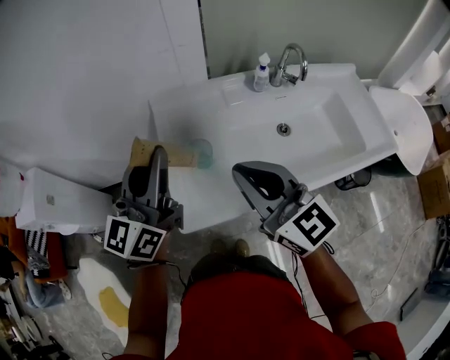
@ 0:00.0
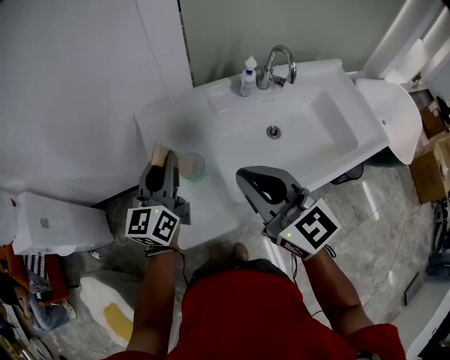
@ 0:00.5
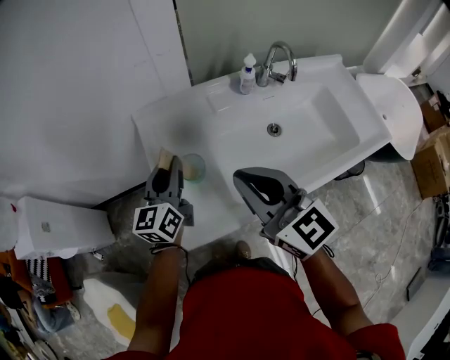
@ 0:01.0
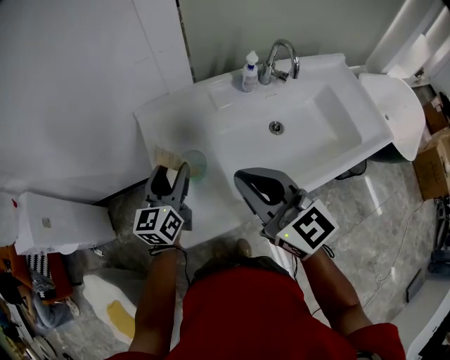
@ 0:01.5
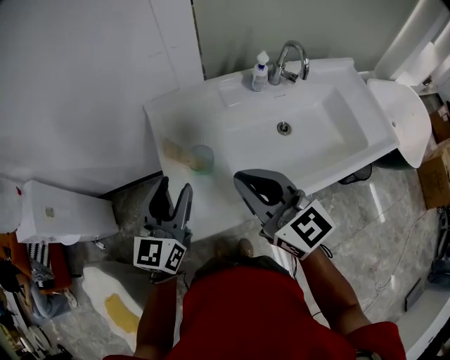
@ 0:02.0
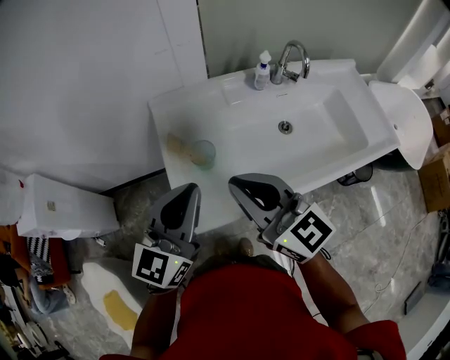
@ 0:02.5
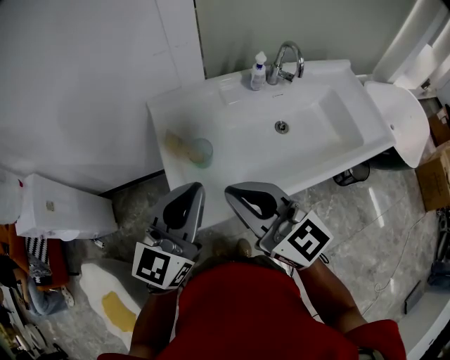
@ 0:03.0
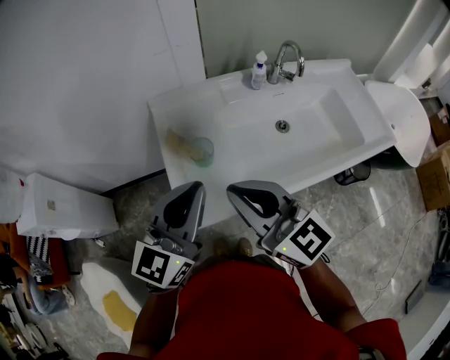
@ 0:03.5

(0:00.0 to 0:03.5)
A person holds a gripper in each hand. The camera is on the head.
0:00.0 - 0:02.0: The left gripper goes some 10 cm downward, and opens its fingers.
0:02.0 - 0:03.5: The right gripper is displaced backward by some 5 cm, while the left gripper goes some 10 cm upward, backward and to the right, and closes up.

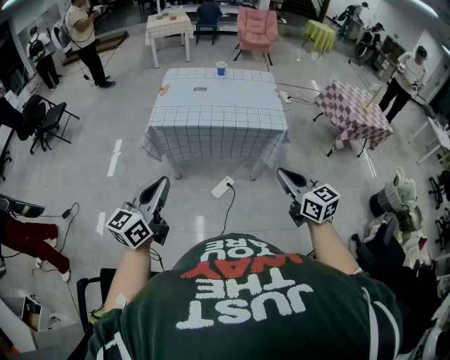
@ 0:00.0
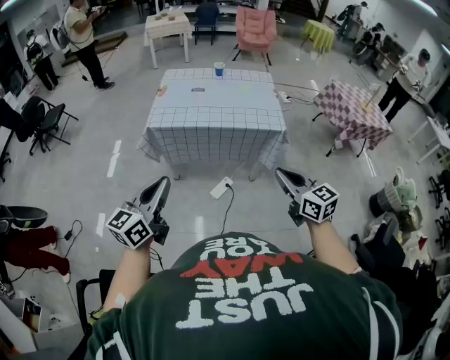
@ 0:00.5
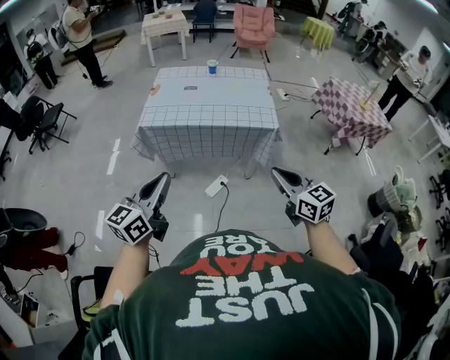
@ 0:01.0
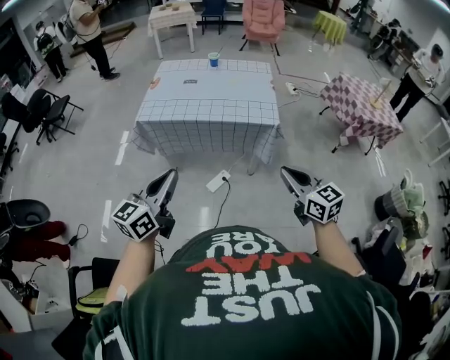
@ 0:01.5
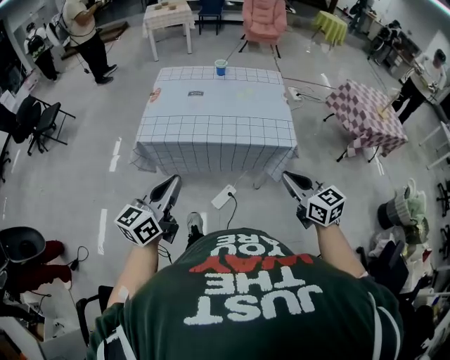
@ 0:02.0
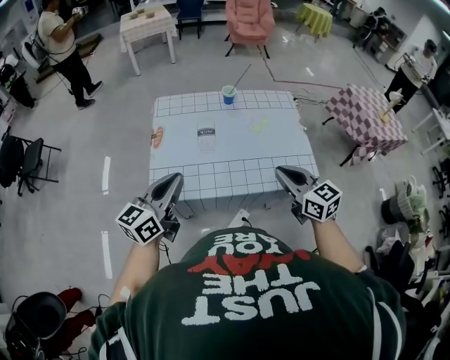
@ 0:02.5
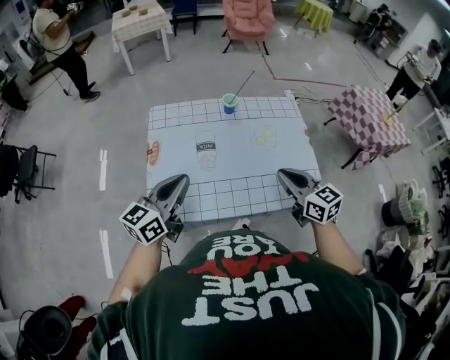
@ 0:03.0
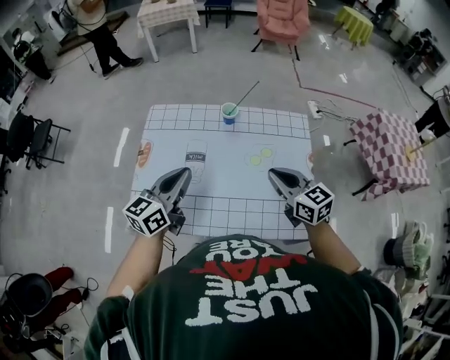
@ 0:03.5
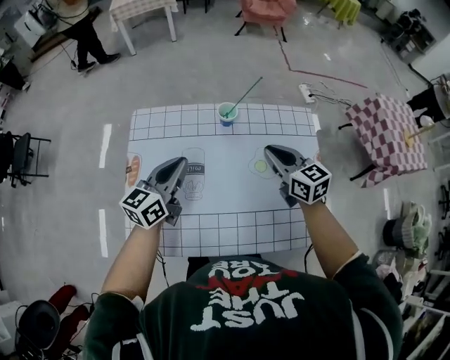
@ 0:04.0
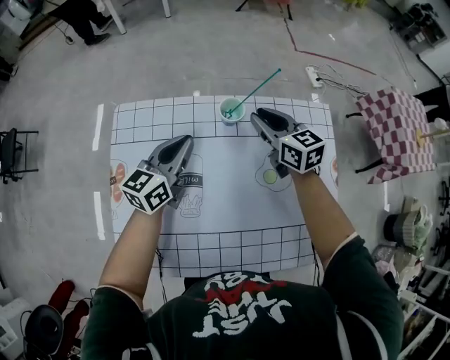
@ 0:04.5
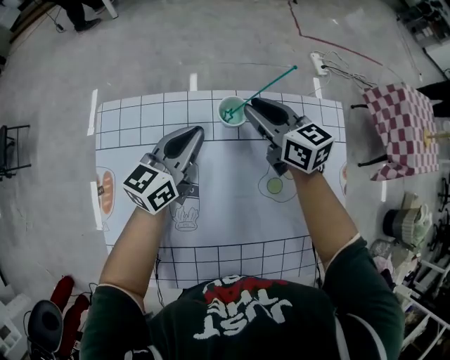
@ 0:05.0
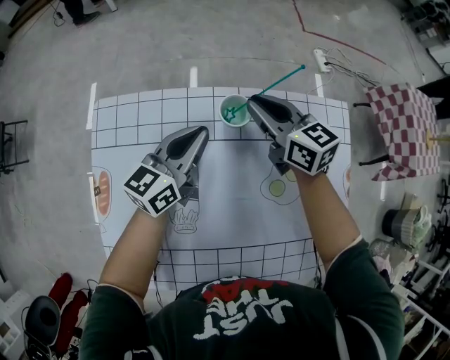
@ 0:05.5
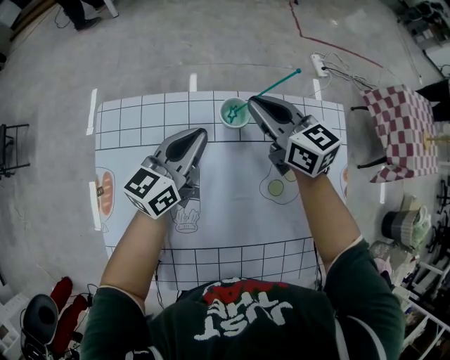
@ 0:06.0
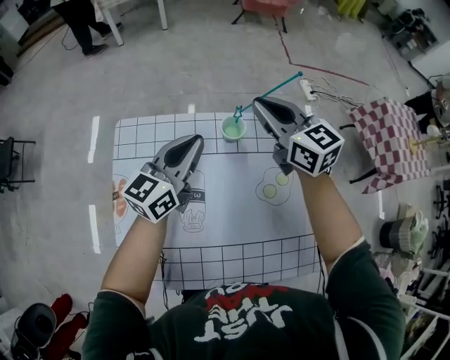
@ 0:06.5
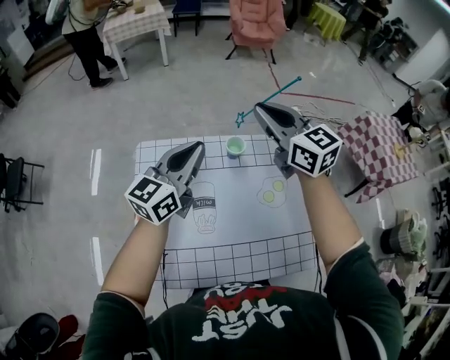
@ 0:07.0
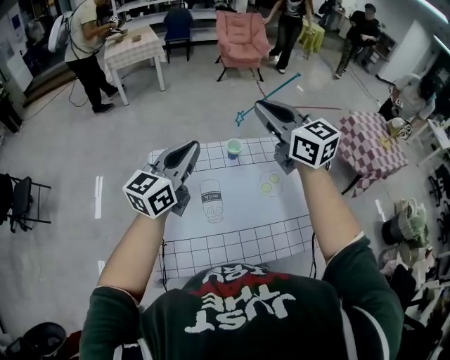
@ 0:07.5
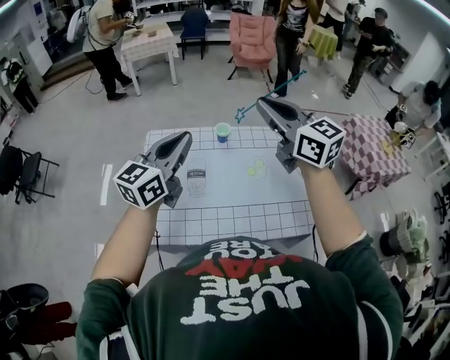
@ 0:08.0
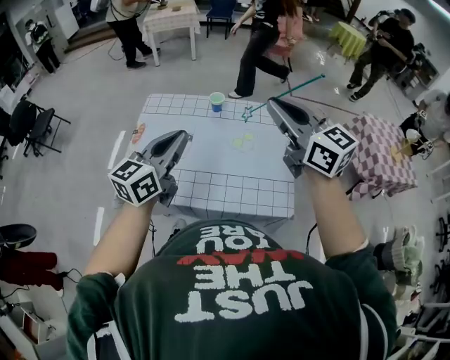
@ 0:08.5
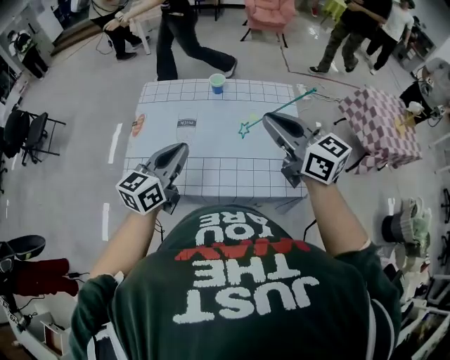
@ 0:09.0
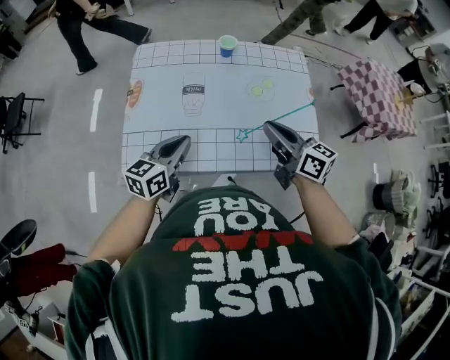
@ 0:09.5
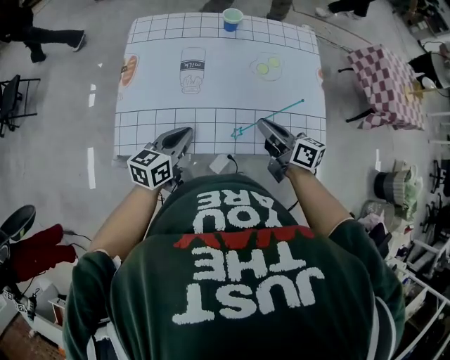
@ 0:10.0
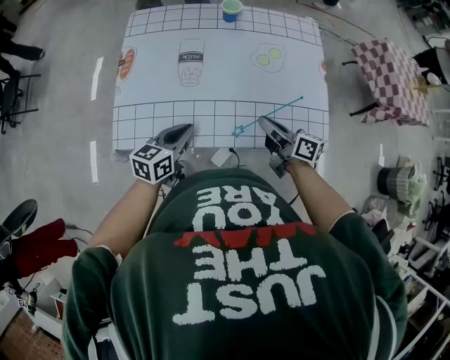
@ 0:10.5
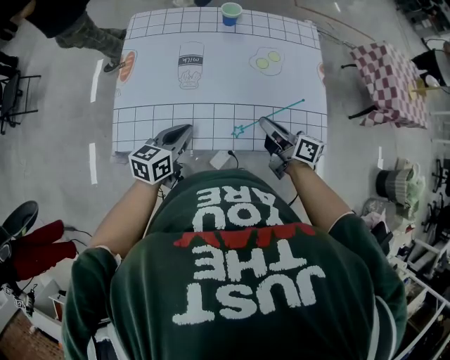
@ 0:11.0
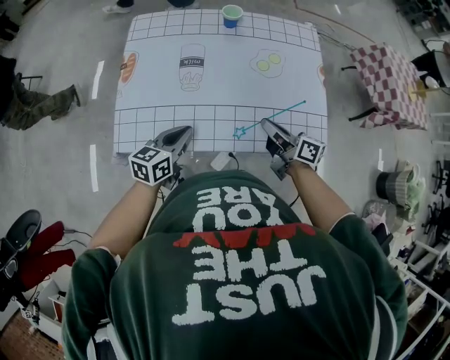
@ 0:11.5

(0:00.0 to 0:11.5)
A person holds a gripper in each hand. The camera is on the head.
0:00.0 - 0:02.0: The right gripper shifts about 20 cm forward. Meanwhile the left gripper goes about 20 cm forward and to the right.
0:02.0 - 0:04.0: The two grippers travel together, forward, roughly 60 cm.
0:04.0 - 0:06.0: The left gripper moves forward and downward, about 20 cm; the right gripper shifts about 20 cm forward.
0:06.0 - 0:07.5: Both grippers move upward and backward, roughly 40 cm. The right gripper turns by some 20 degrees.
0:07.5 - 0:09.5: Both grippers move backward and downward, approximately 35 cm. The right gripper turns by approximately 30 degrees; the left gripper rotates about 20 degrees.
0:09.5 - 0:11.5: The left gripper goes about 10 cm downward; the right gripper is displaced downward by roughly 15 cm, and swivels about 20 degrees.

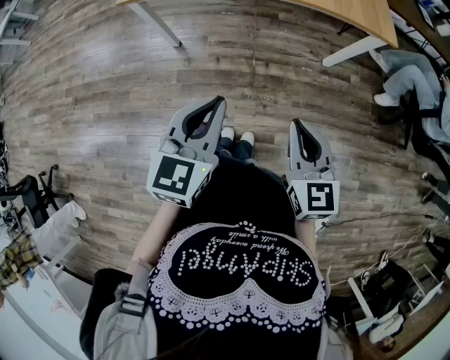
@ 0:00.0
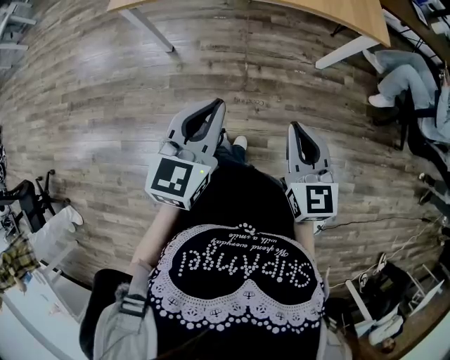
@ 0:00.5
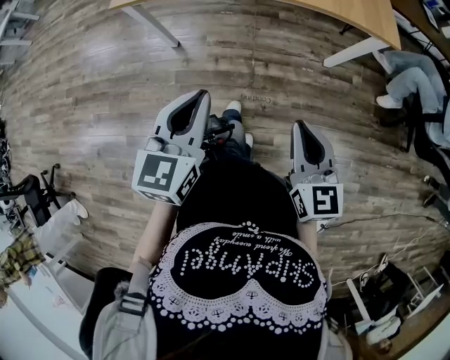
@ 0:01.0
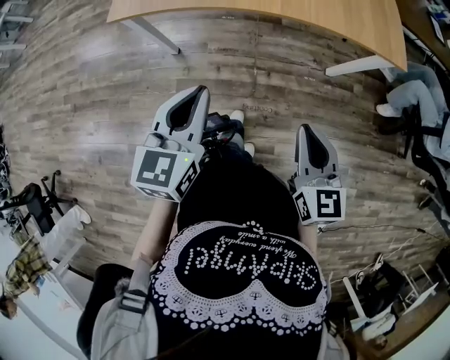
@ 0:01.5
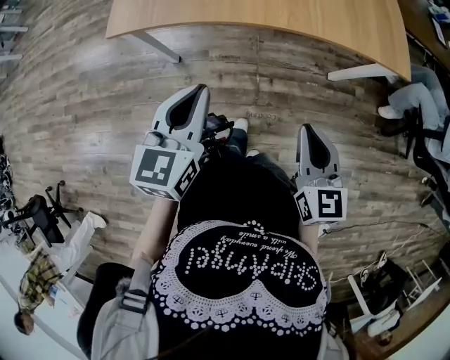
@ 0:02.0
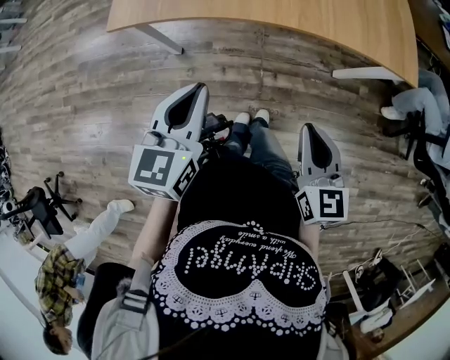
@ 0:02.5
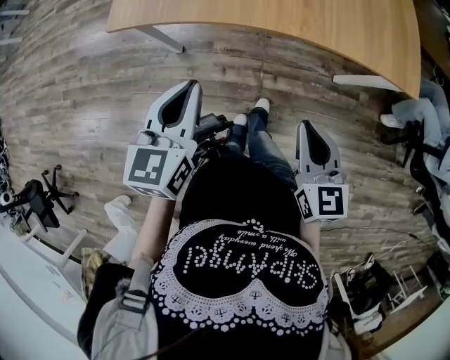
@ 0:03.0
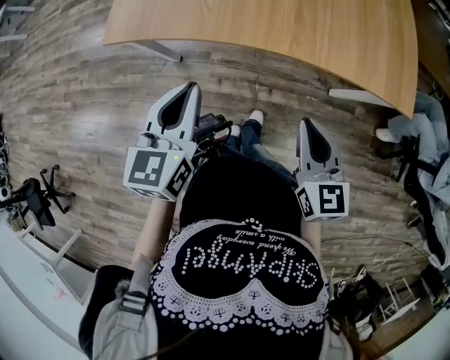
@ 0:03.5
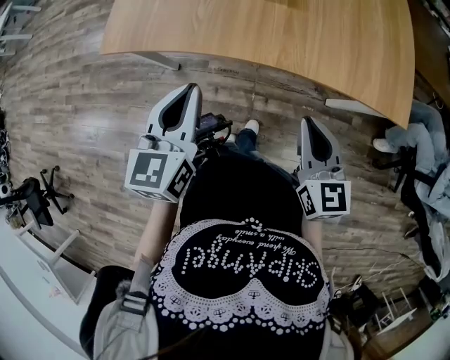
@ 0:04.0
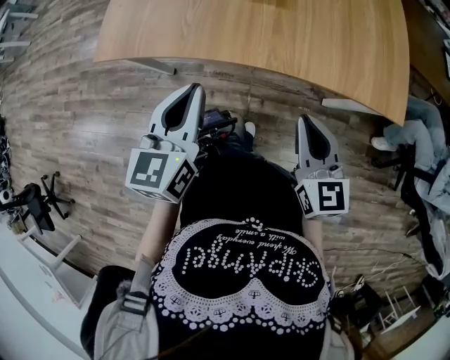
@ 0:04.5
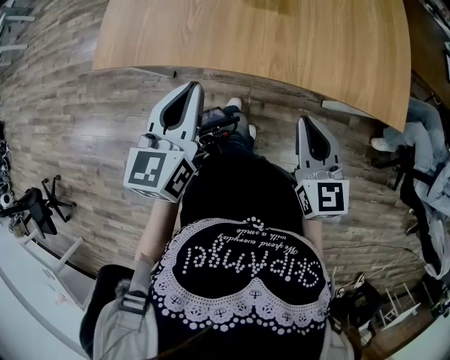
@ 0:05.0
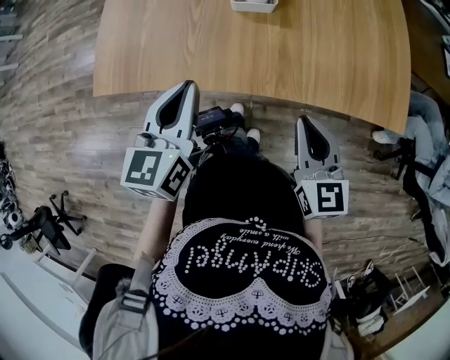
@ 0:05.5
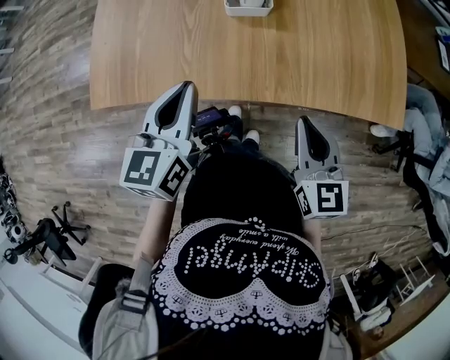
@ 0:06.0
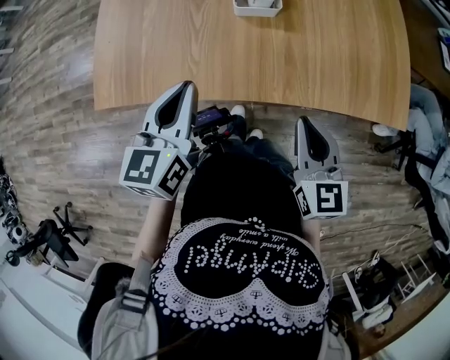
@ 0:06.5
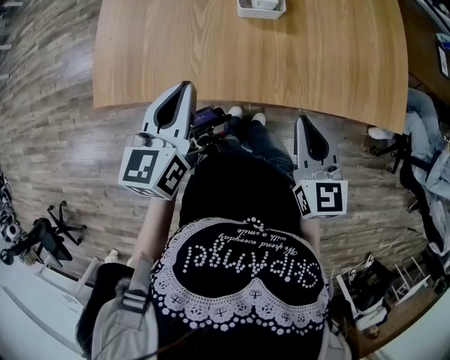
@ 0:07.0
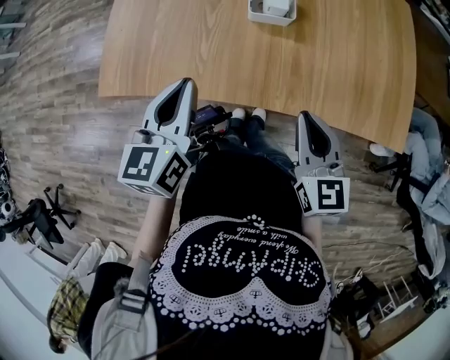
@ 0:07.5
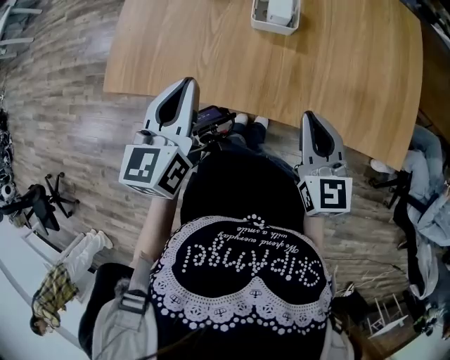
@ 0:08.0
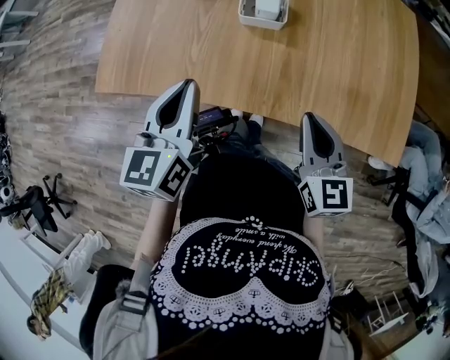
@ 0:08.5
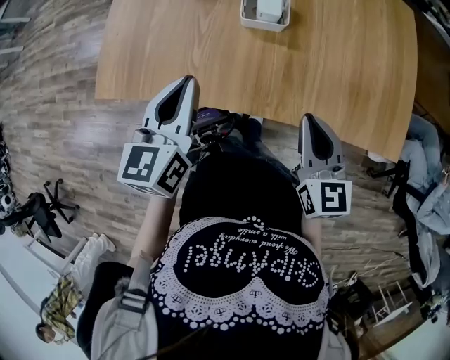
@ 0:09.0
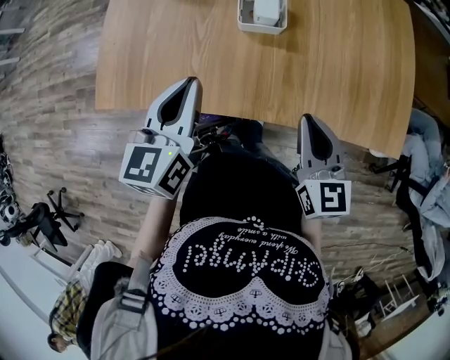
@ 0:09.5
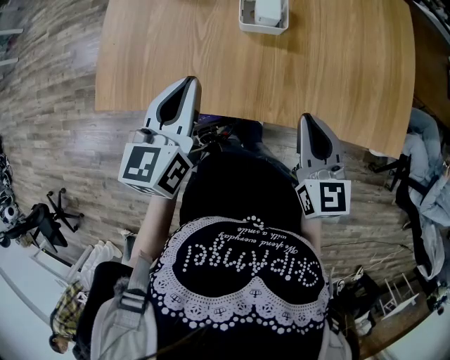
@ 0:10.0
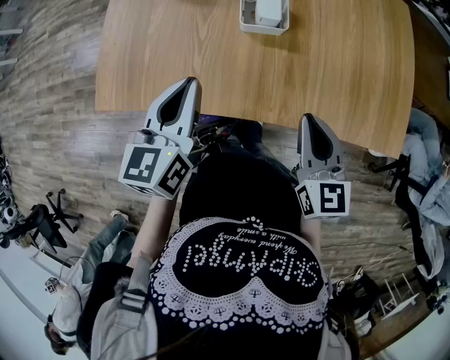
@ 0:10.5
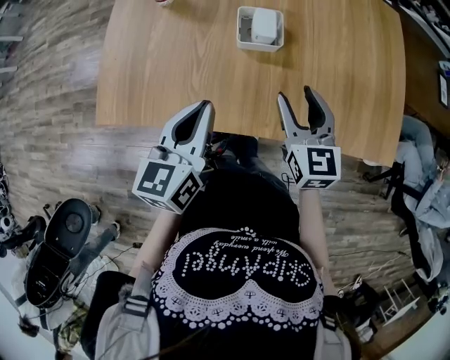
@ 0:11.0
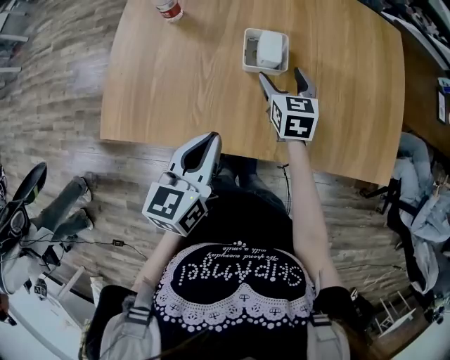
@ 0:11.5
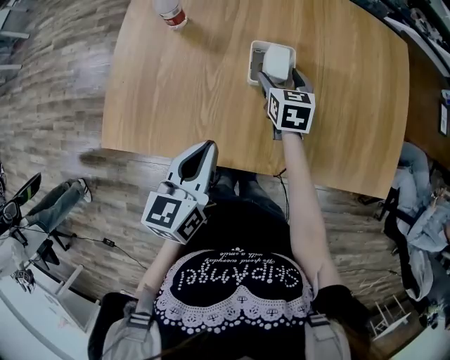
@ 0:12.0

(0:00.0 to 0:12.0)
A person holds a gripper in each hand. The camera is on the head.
0:00.0 - 0:02.0: Both grippers move forward, roughly 20 cm.
0:02.0 - 0:04.0: Both grippers travel together forward, about 15 cm.
0:04.0 - 0:06.0: The two grippers go roughly 10 cm forward.
0:06.0 - 0:08.0: The right gripper moves forward, some 5 cm.
0:08.0 - 0:10.0: The grippers stay close to where they were, moving slightly.
0:10.0 - 0:12.0: The right gripper moves forward and downward, some 30 cm, and opens.
